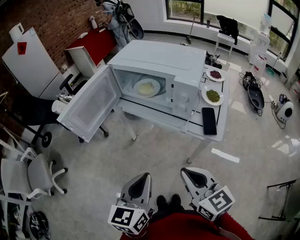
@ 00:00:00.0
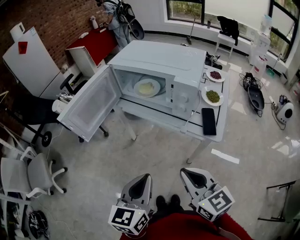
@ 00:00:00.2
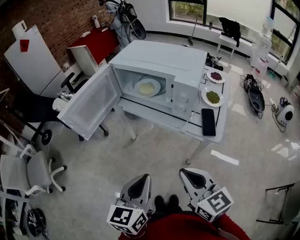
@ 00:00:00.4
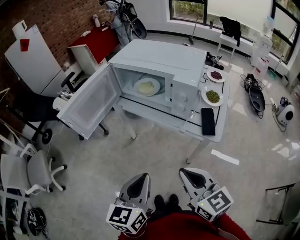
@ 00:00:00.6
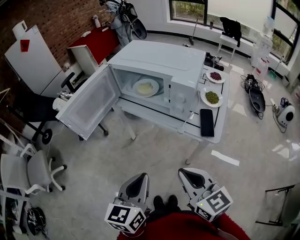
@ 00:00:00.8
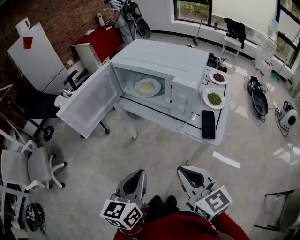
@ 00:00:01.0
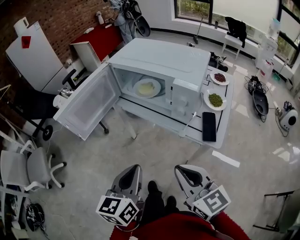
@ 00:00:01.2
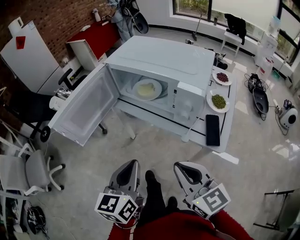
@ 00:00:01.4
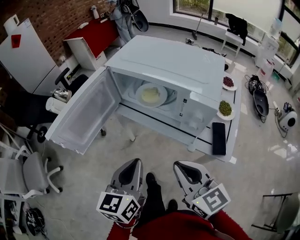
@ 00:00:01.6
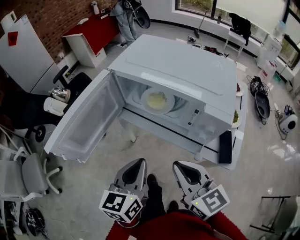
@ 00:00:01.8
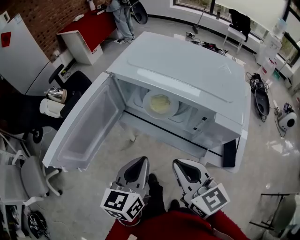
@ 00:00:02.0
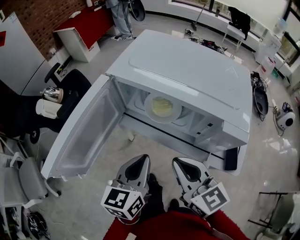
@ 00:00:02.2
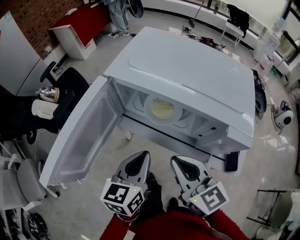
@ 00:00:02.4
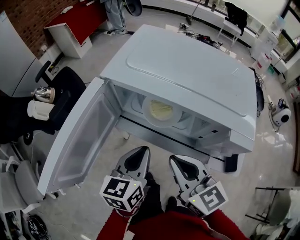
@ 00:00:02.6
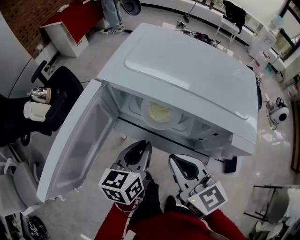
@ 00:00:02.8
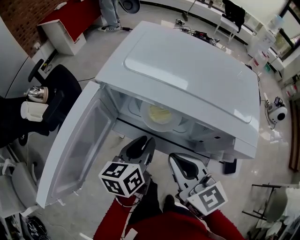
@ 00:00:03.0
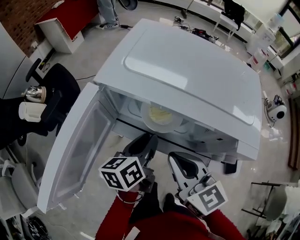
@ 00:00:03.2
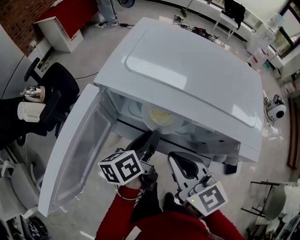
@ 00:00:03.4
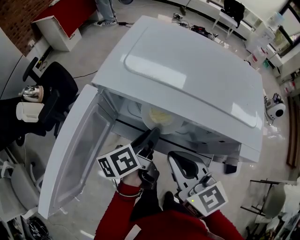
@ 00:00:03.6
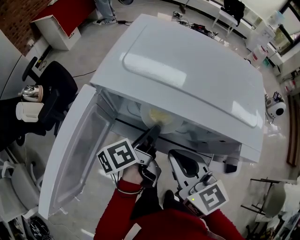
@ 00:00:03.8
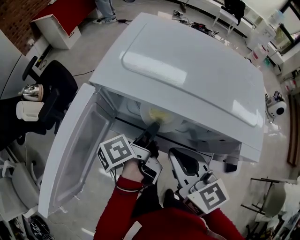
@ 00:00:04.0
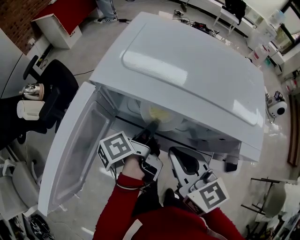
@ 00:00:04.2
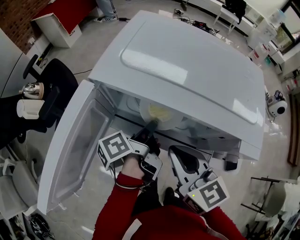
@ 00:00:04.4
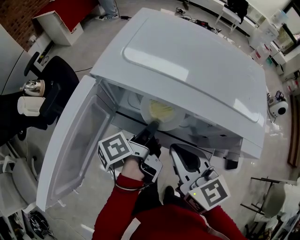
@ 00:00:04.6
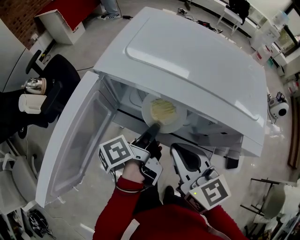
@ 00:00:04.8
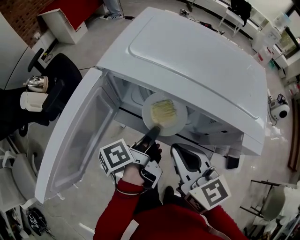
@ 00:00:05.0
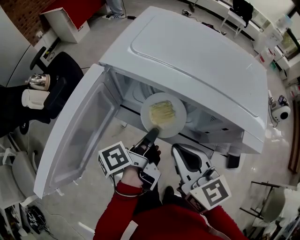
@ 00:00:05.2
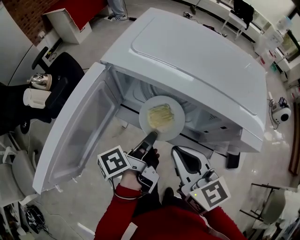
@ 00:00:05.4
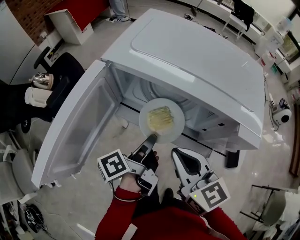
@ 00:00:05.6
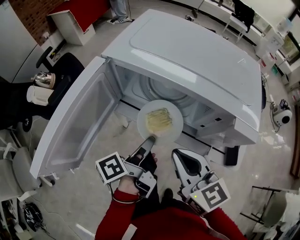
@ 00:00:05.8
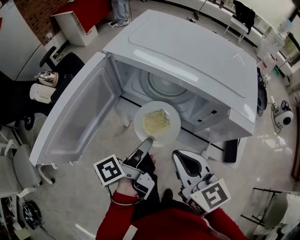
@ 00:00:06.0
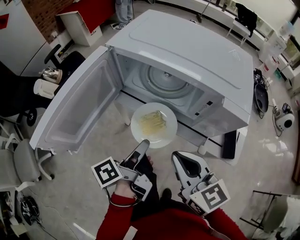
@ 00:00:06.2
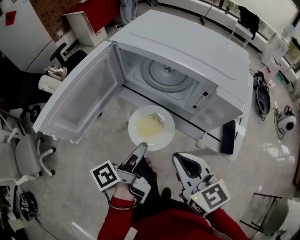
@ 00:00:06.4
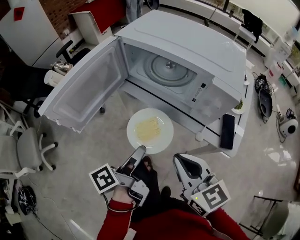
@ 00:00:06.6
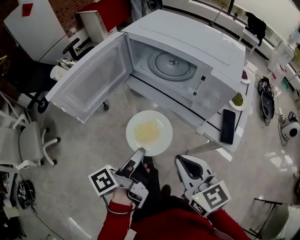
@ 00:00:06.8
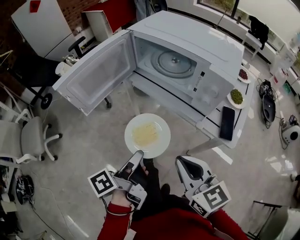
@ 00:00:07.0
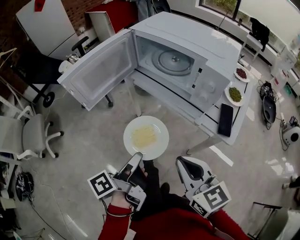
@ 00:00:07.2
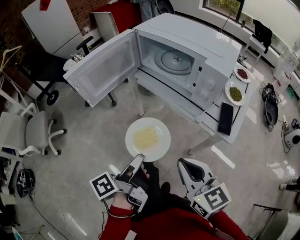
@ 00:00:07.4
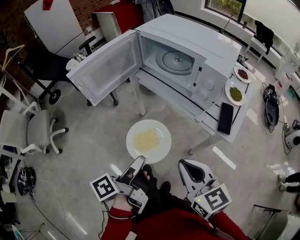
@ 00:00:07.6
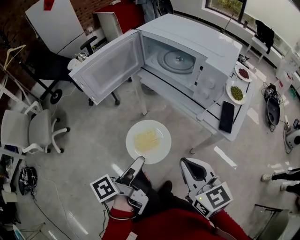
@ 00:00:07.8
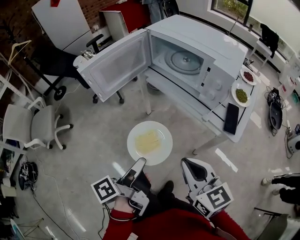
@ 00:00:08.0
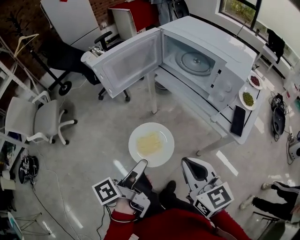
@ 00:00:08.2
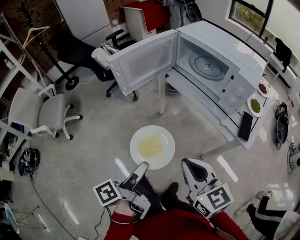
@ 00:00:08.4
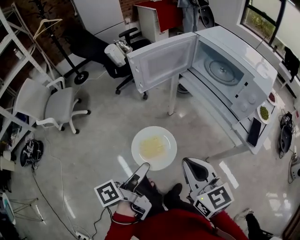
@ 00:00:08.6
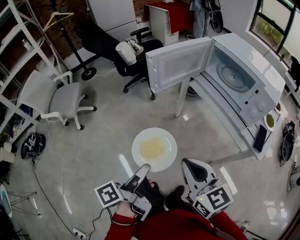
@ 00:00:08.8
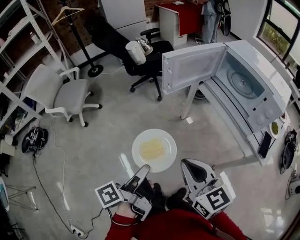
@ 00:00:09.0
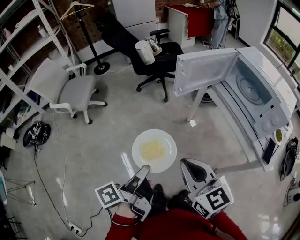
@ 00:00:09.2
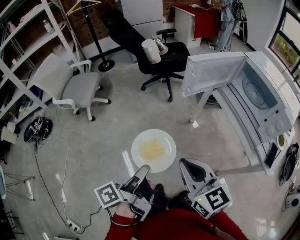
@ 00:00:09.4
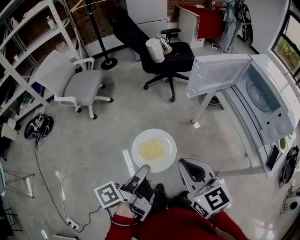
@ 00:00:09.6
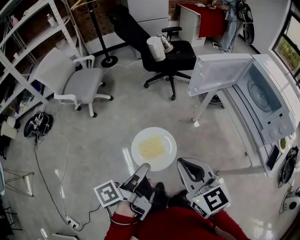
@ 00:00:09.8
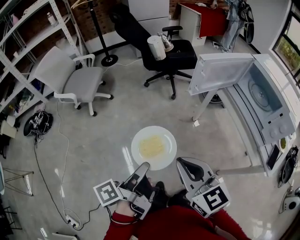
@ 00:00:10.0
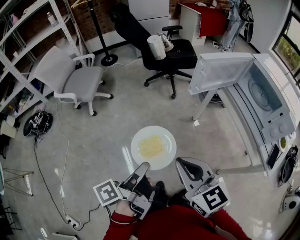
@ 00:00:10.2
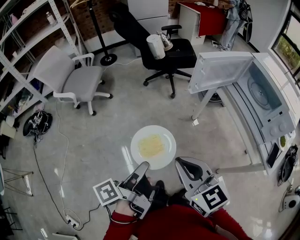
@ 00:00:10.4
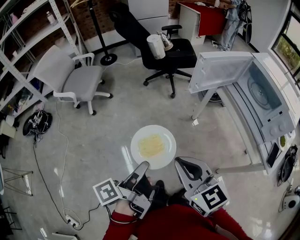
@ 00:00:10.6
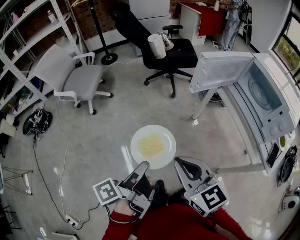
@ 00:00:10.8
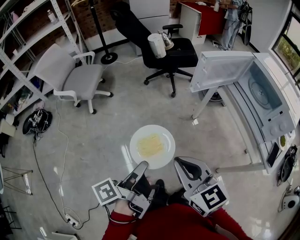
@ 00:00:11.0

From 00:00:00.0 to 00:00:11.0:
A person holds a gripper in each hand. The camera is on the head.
From 00:00:00.0 to 00:00:01.6: The right gripper ends up some 10 cm from where it was.
From 00:00:01.6 to 00:00:03.2: The right gripper changes place by approximately 20 cm.
From 00:00:04.8 to 00:00:06.2: The right gripper changes place by roughly 10 cm.
From 00:00:06.2 to 00:00:07.8: The right gripper changes place by some 15 cm.
From 00:00:07.8 to 00:00:09.4: The right gripper shifts by roughly 25 cm, and changes its angle by approximately 30 degrees.

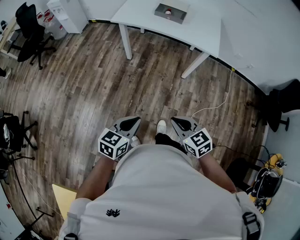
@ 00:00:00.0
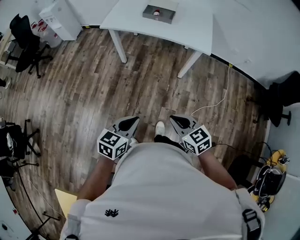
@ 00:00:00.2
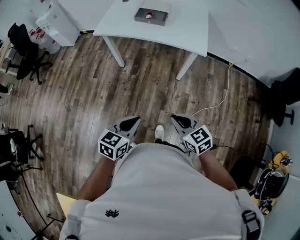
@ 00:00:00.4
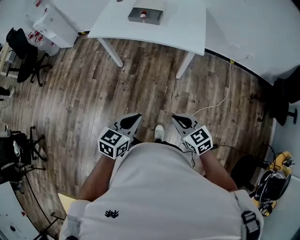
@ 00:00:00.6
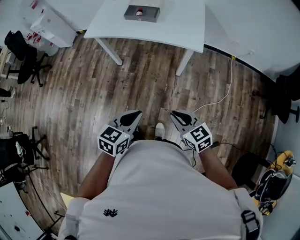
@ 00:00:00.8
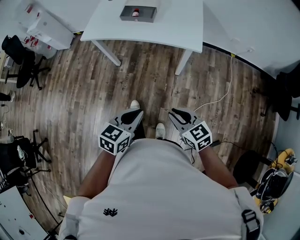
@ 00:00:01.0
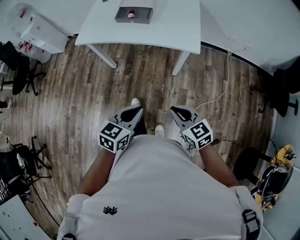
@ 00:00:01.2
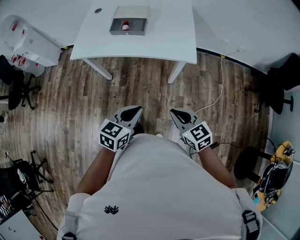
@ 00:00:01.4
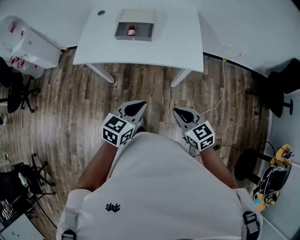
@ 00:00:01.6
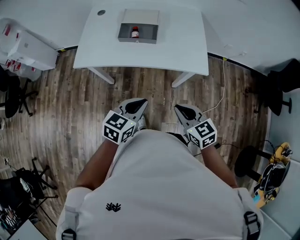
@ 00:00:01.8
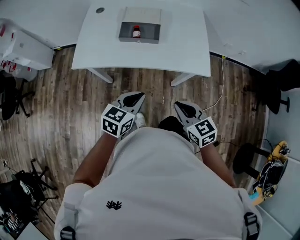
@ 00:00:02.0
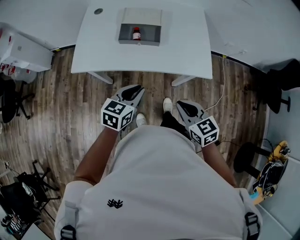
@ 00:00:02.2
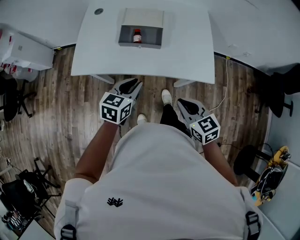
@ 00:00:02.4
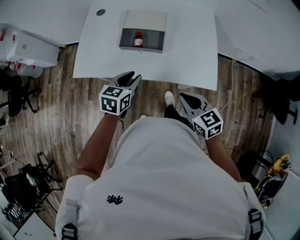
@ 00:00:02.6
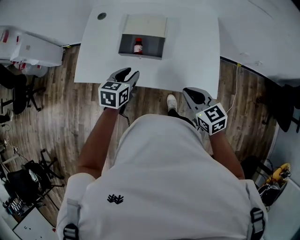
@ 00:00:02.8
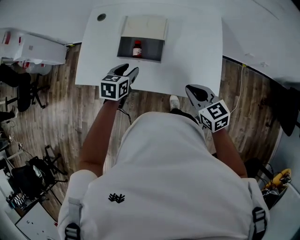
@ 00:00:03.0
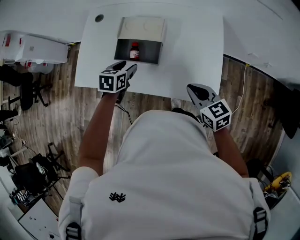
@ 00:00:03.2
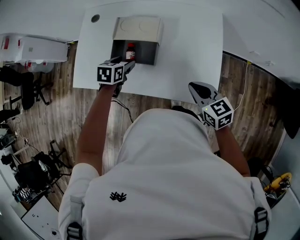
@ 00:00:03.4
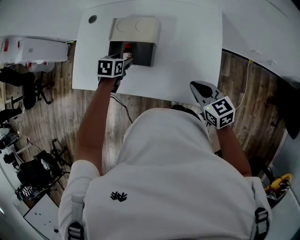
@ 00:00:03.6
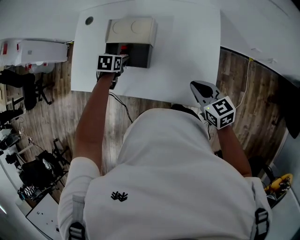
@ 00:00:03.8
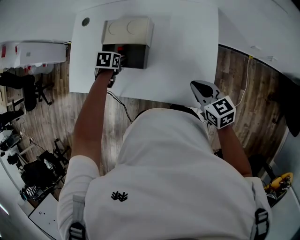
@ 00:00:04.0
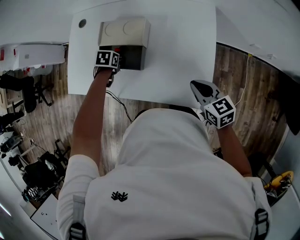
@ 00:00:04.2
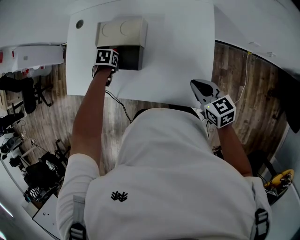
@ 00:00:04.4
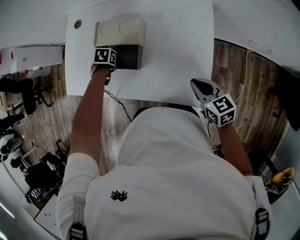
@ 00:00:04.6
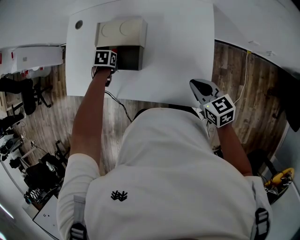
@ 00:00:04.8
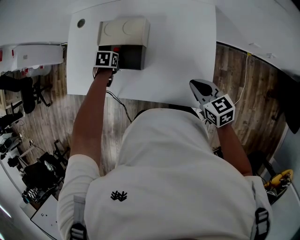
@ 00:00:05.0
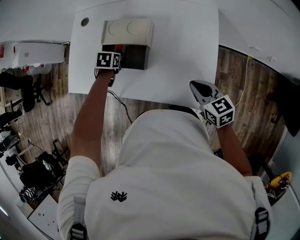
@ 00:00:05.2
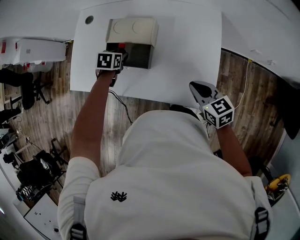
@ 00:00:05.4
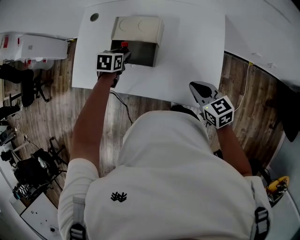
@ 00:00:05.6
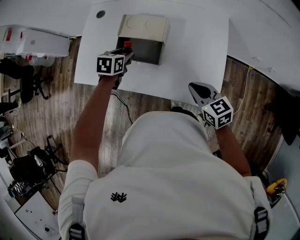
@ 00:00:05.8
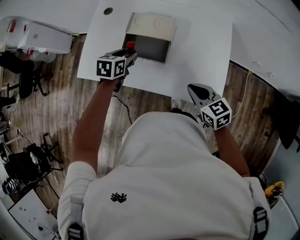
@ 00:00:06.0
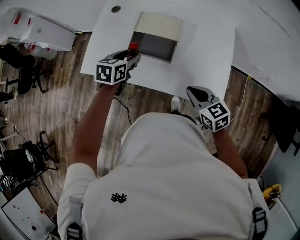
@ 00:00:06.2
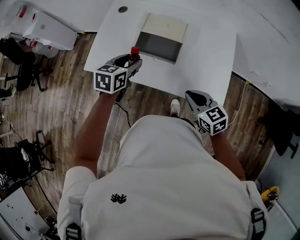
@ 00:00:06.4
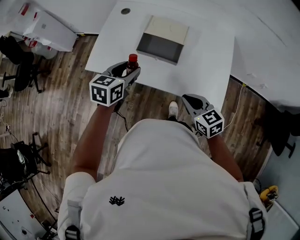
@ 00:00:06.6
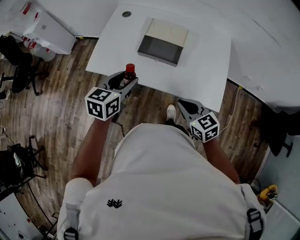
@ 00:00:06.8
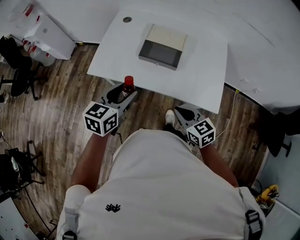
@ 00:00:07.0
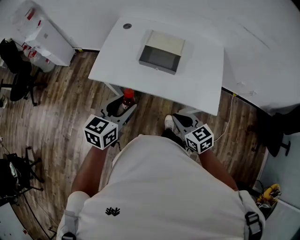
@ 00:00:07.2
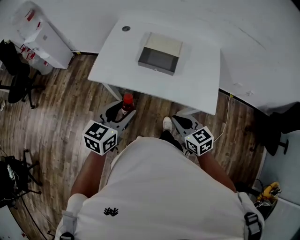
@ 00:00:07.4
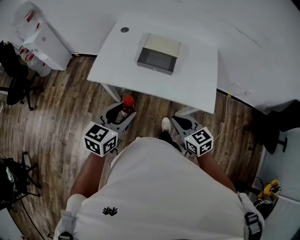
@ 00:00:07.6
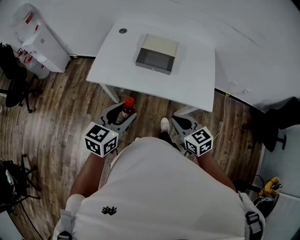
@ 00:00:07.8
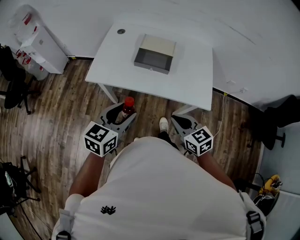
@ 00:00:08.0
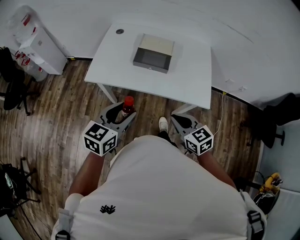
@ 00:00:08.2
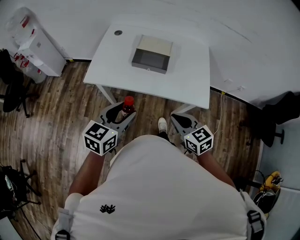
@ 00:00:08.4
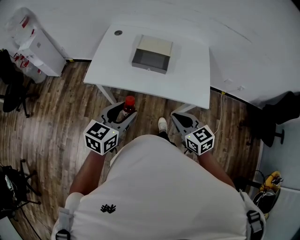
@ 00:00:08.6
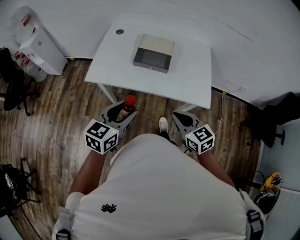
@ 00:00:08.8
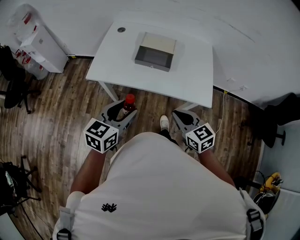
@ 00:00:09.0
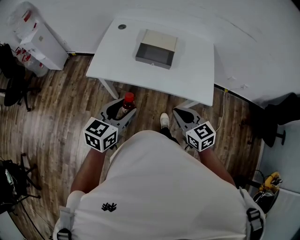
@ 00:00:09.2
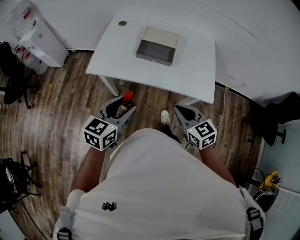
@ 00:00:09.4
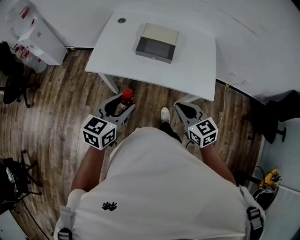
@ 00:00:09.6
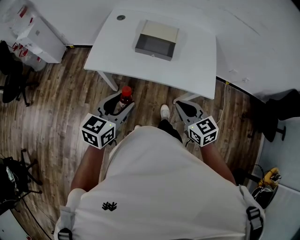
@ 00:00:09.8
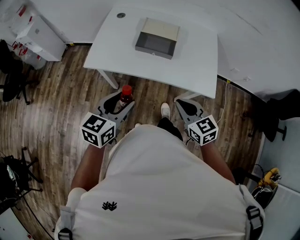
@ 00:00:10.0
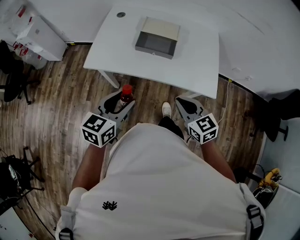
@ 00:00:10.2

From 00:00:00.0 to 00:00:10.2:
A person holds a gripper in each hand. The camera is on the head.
From 00:00:00.0 to 00:00:01.4: The grippers both shift forward and to the right by roughly 25 cm.
From 00:00:01.4 to 00:00:03.0: Both grippers move forward, roughly 35 cm. The left gripper rotates approximately 20 degrees, and opens its fingers.
From 00:00:03.0 to 00:00:04.4: The right gripper shifts by some 15 cm. The left gripper is displaced downward by roughly 15 cm, and angles its fingers downward, by some 40 degrees.
From 00:00:04.4 to 00:00:05.8: The left gripper shifts about 10 cm upward, and turns by roughly 30 degrees. Meanwhile the right gripper shifts by about 10 cm.
From 00:00:05.8 to 00:00:07.2: The right gripper is displaced to the left and backward by some 20 cm, while the left gripper heads backward, upward and to the left, covering some 30 cm, and changes its angle by some 30 degrees.
From 00:00:07.2 to 00:00:08.8: The right gripper changes place by approximately 5 cm; the left gripper goes about 5 cm backward.
From 00:00:08.8 to 00:00:10.2: The grippers stay close to where they were, moving slightly.

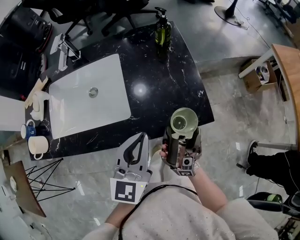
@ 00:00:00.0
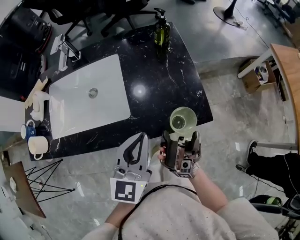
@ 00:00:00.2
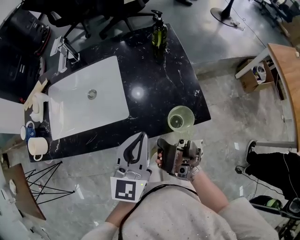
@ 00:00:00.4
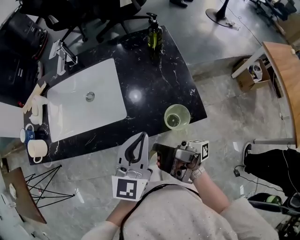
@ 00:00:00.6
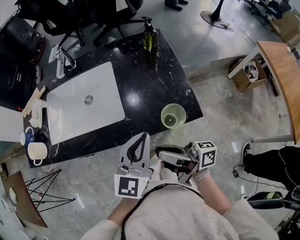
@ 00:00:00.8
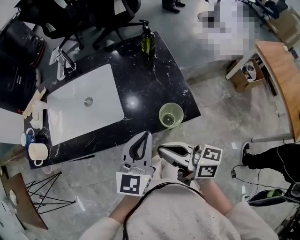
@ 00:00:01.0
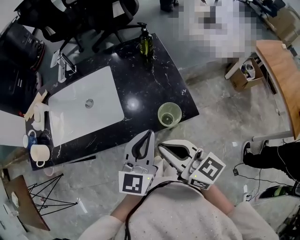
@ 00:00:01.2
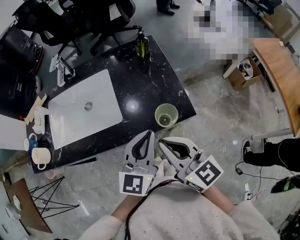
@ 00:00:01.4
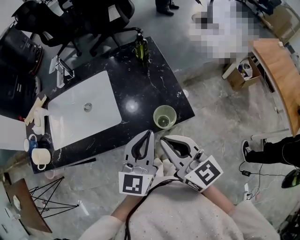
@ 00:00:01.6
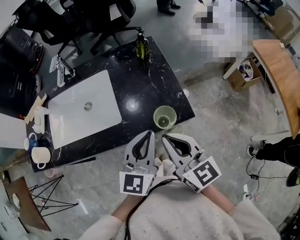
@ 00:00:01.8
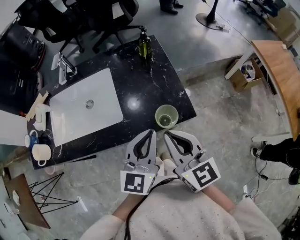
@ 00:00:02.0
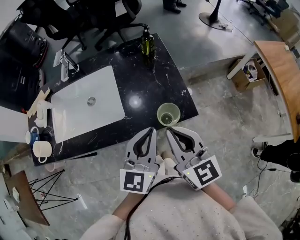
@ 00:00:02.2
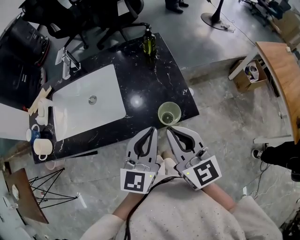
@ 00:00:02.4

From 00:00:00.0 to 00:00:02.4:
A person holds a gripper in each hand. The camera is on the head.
From 00:00:00.0 to 00:00:01.2: The left gripper changes place by some 5 cm.
